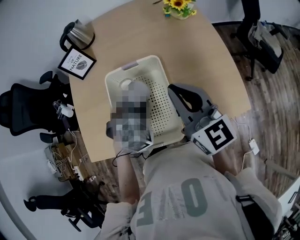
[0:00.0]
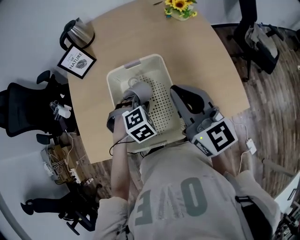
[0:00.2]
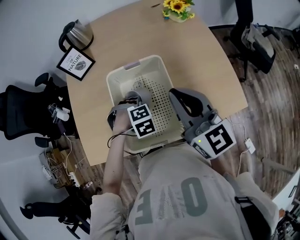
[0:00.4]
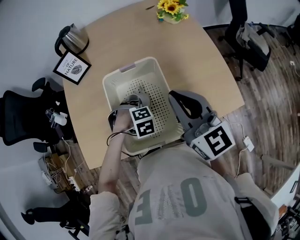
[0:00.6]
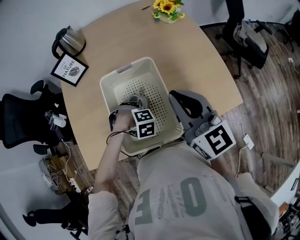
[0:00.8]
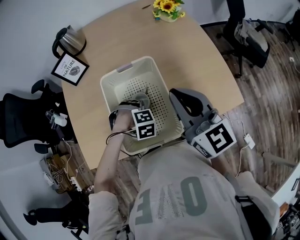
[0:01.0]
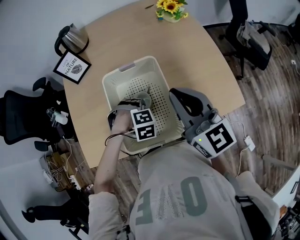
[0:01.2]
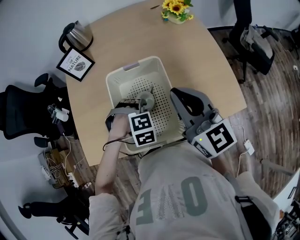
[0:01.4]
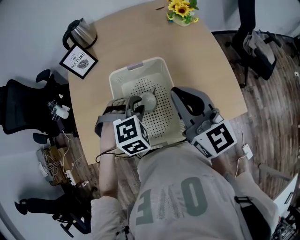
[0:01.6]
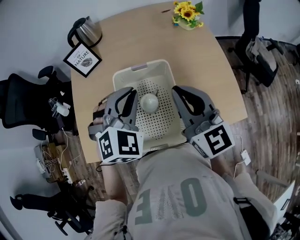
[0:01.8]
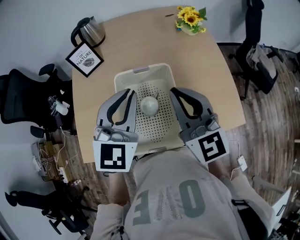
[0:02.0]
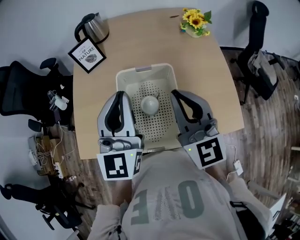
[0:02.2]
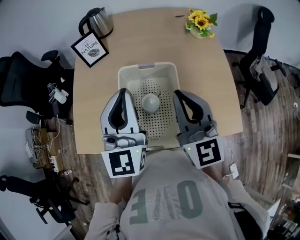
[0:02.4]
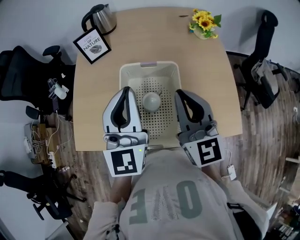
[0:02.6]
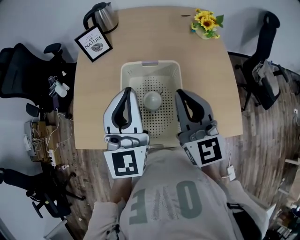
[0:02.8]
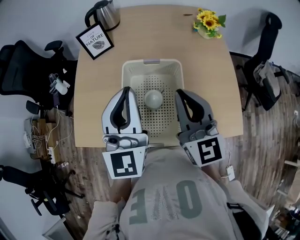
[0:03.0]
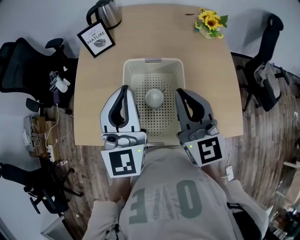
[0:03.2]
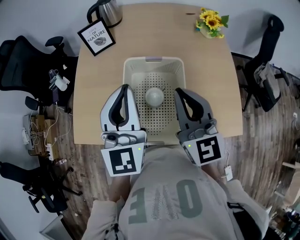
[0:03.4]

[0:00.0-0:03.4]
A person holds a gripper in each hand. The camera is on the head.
0:00.0 to 0:01.6: The left gripper travels downward and back again, some 15 cm each way.
0:01.6 to 0:03.4: The left gripper heads upward and to the left, covering roughly 20 cm, tips its fingers upward by approximately 60 degrees, and closes its fingers.

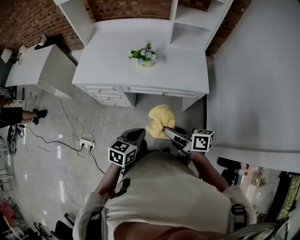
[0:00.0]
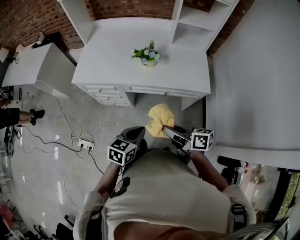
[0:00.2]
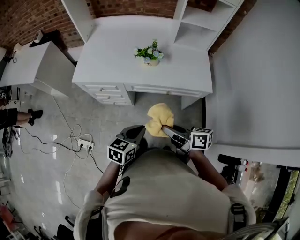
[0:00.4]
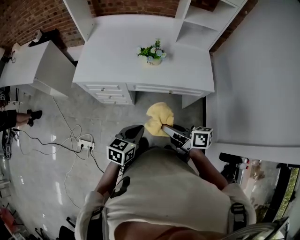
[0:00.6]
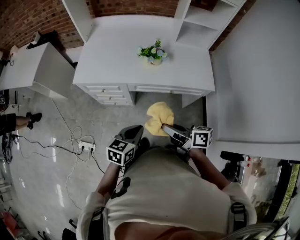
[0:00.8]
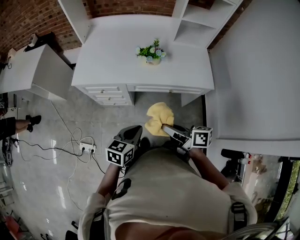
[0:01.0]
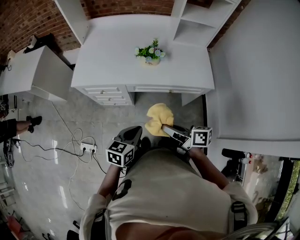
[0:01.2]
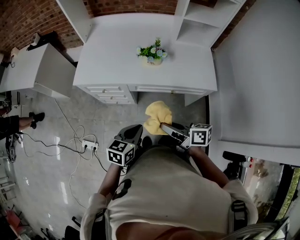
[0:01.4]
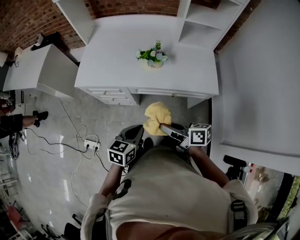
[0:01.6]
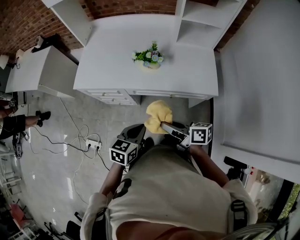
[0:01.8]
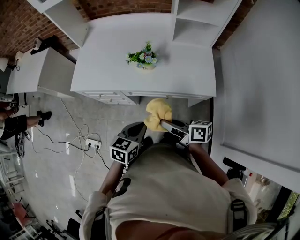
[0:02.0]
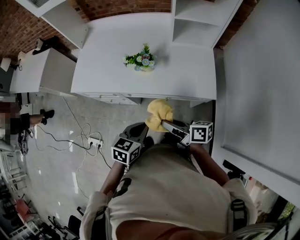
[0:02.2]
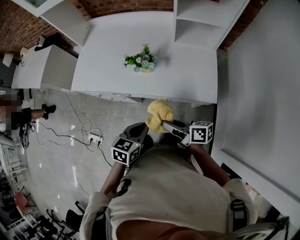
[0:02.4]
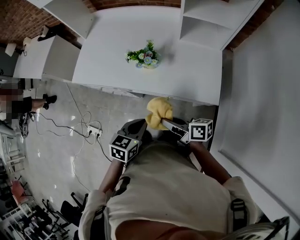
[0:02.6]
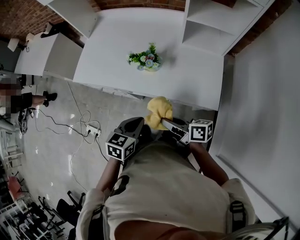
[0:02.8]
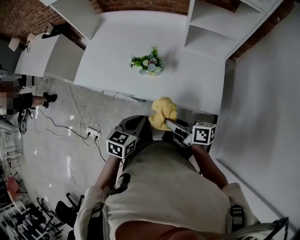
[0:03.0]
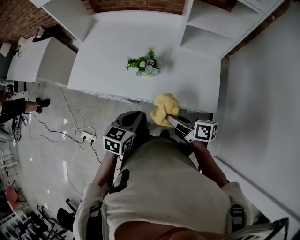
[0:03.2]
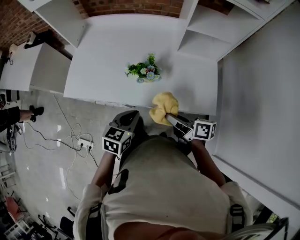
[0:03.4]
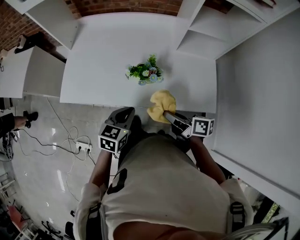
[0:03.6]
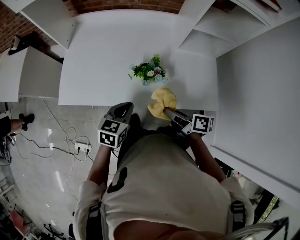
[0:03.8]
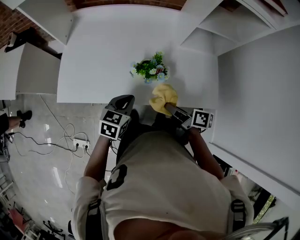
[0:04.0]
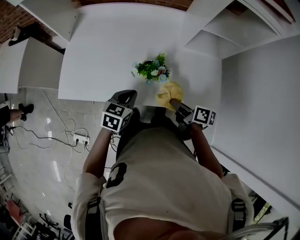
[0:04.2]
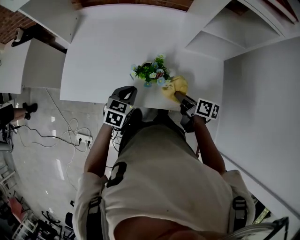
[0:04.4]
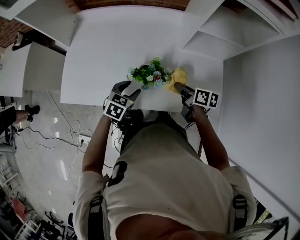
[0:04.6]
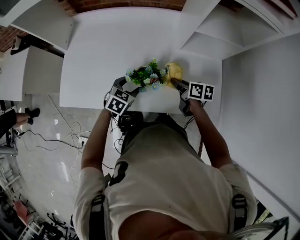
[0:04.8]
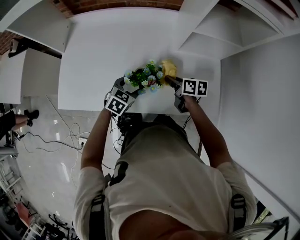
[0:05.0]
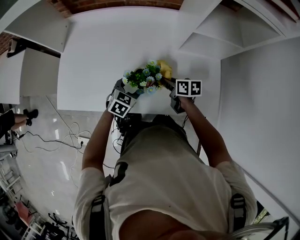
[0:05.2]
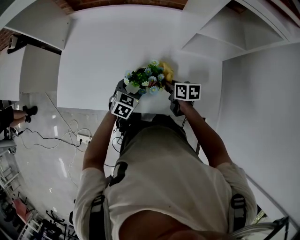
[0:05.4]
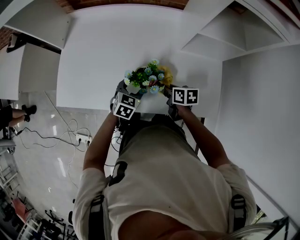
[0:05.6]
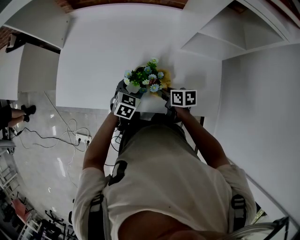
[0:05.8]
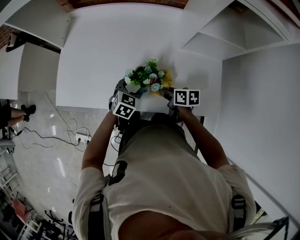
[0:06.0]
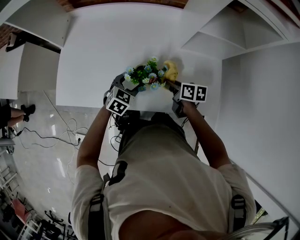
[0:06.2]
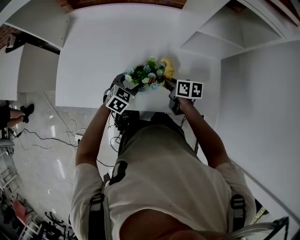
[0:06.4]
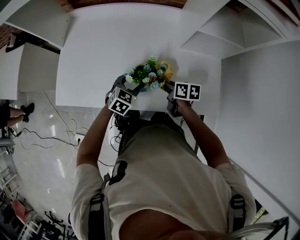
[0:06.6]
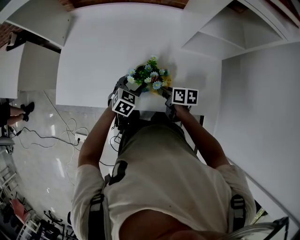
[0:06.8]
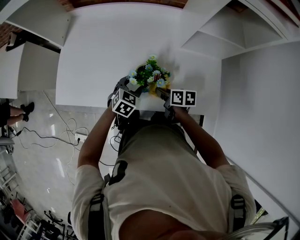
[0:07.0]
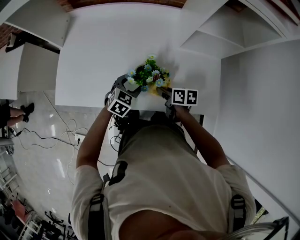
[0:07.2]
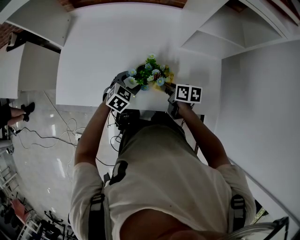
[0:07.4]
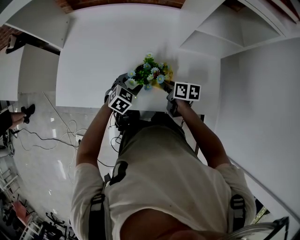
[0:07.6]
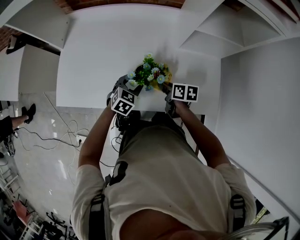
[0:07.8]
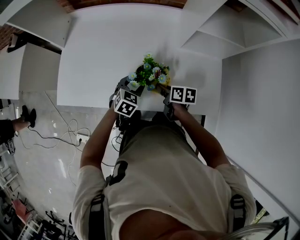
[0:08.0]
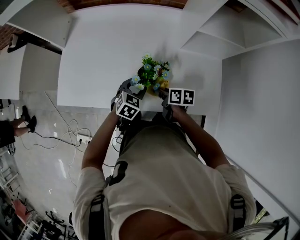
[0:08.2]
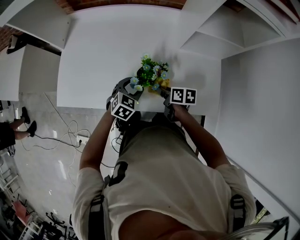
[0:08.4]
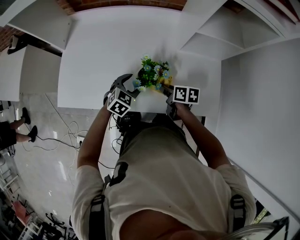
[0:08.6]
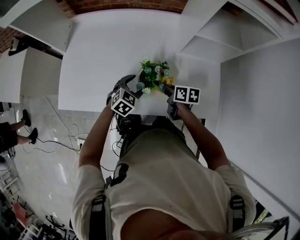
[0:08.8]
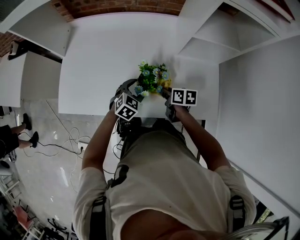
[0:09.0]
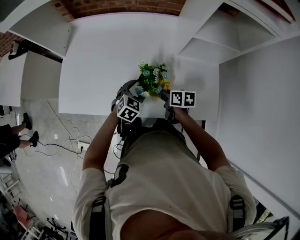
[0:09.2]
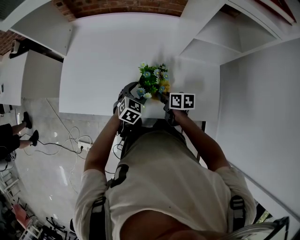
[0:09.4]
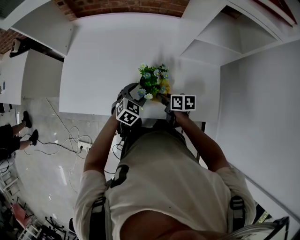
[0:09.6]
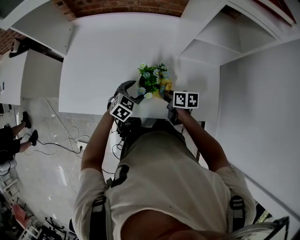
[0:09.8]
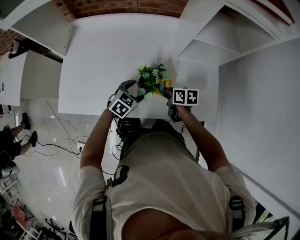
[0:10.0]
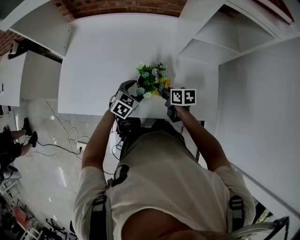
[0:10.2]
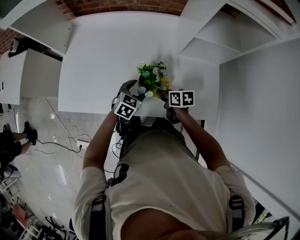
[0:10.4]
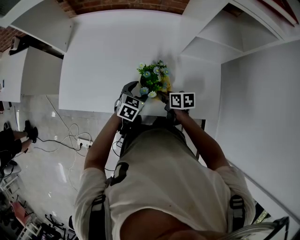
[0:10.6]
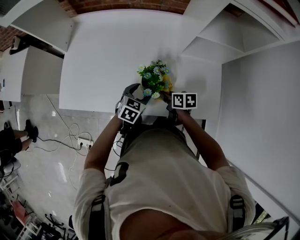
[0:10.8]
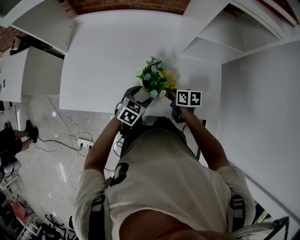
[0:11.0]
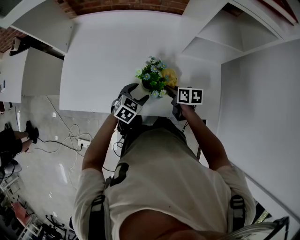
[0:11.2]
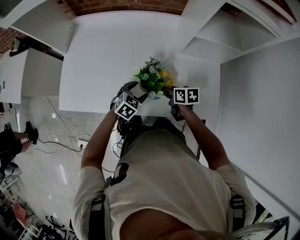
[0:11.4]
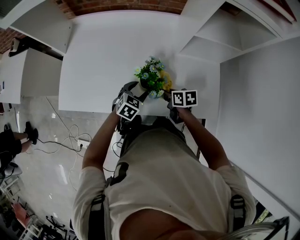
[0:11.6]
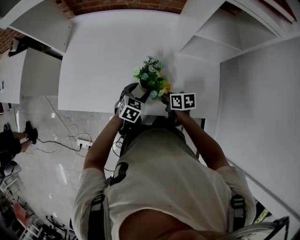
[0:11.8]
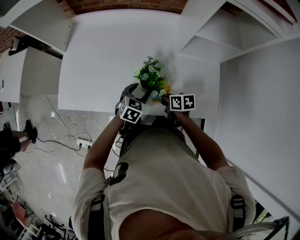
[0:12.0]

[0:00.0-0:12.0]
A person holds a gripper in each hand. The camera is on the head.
0:00.0 to 0:01.6: The grippers both shift to the left and forward by roughly 10 cm.
0:01.6 to 0:03.0: The two grippers go about 15 cm to the right and forward.
0:03.0 to 0:04.4: The right gripper shifts some 20 cm forward and downward, and turns by about 30 degrees. Meanwhile the left gripper shifts about 20 cm forward.
0:04.4 to 0:06.0: The right gripper heads downward, covering roughly 5 cm; the left gripper shifts approximately 10 cm downward and forward, and opens its fingers.
0:06.0 to 0:07.6: The right gripper moves forward and backward over some 5 cm, changing direction 2 times.
0:07.6 to 0:12.0: The grippers stay close to where they were, moving slightly.

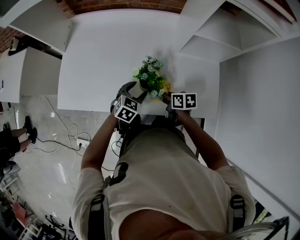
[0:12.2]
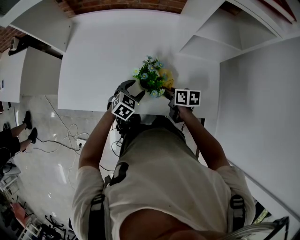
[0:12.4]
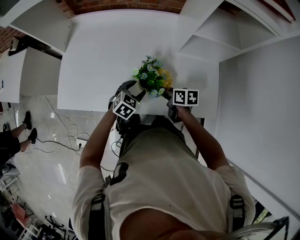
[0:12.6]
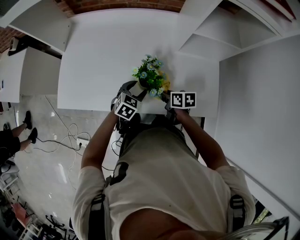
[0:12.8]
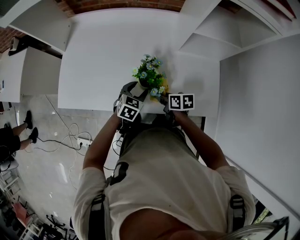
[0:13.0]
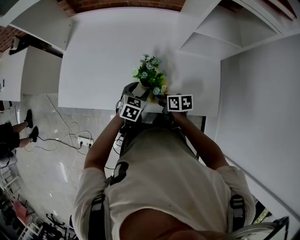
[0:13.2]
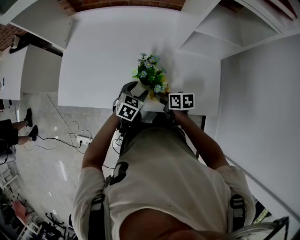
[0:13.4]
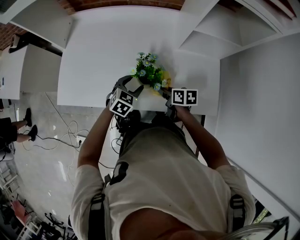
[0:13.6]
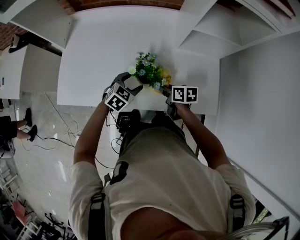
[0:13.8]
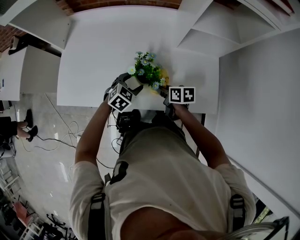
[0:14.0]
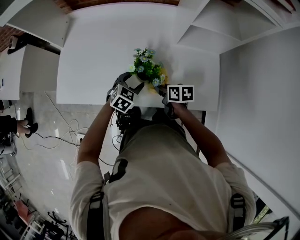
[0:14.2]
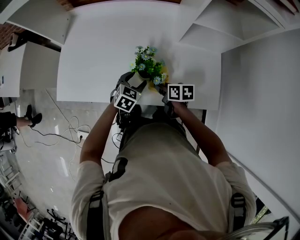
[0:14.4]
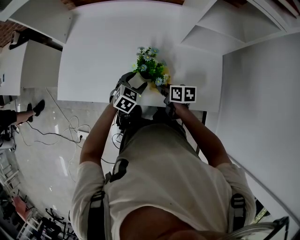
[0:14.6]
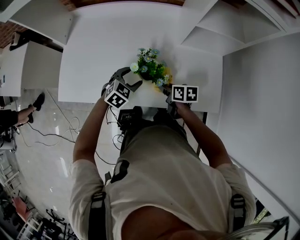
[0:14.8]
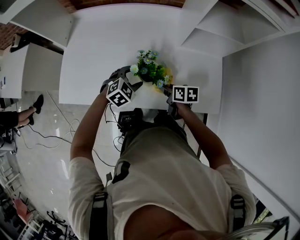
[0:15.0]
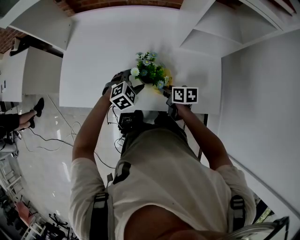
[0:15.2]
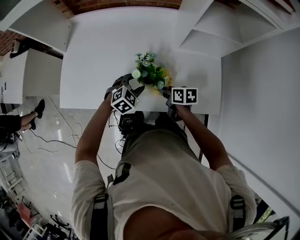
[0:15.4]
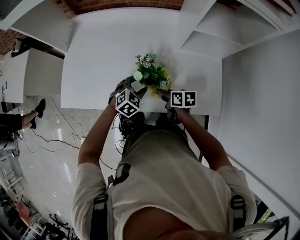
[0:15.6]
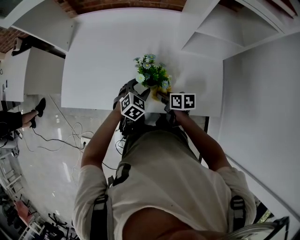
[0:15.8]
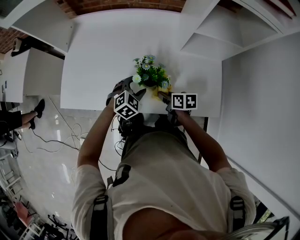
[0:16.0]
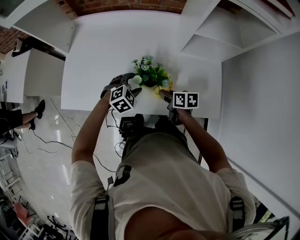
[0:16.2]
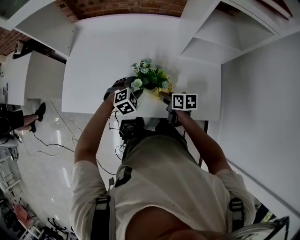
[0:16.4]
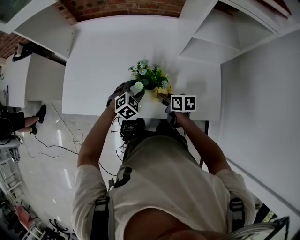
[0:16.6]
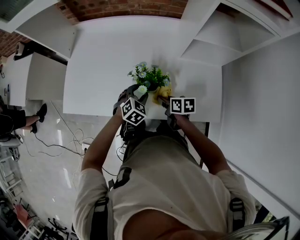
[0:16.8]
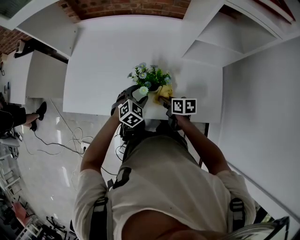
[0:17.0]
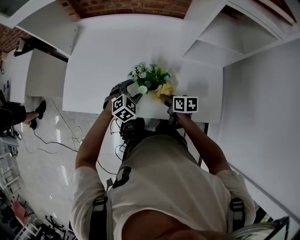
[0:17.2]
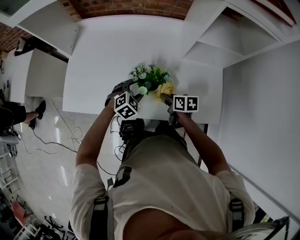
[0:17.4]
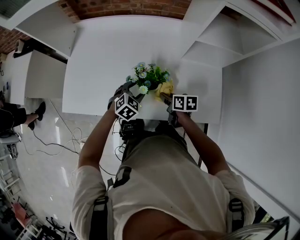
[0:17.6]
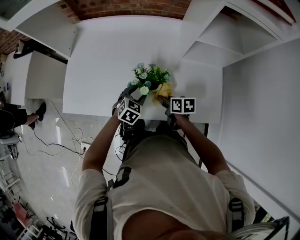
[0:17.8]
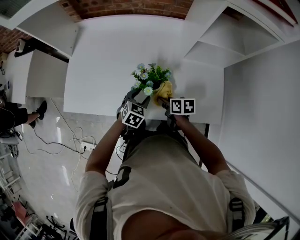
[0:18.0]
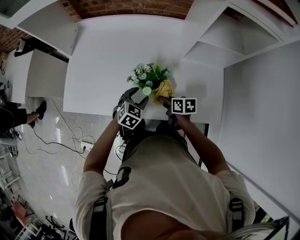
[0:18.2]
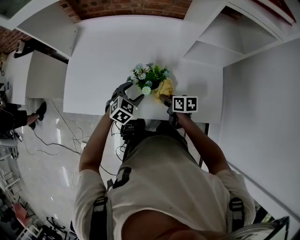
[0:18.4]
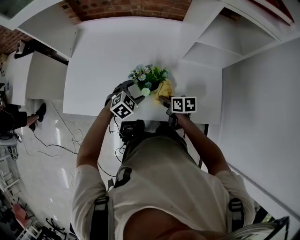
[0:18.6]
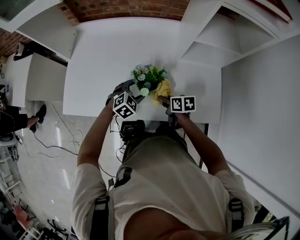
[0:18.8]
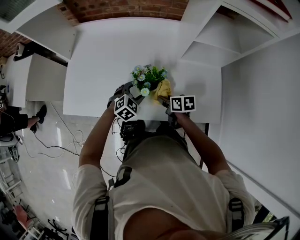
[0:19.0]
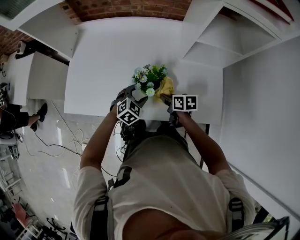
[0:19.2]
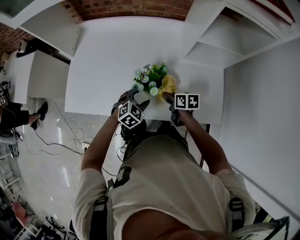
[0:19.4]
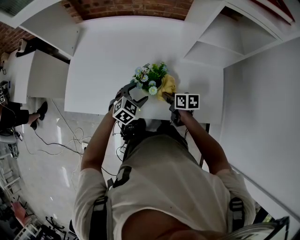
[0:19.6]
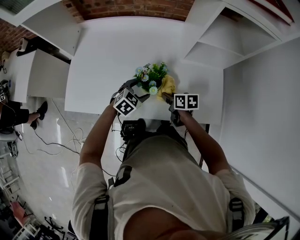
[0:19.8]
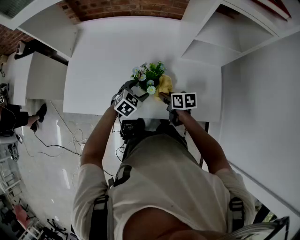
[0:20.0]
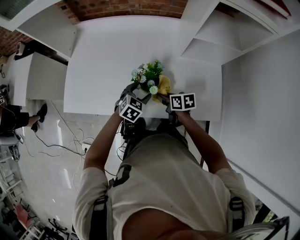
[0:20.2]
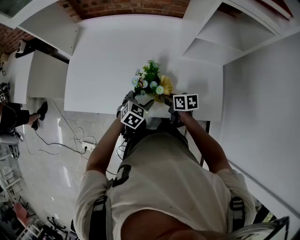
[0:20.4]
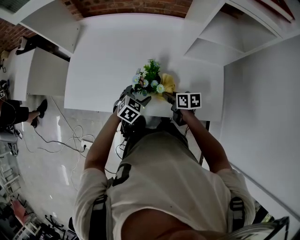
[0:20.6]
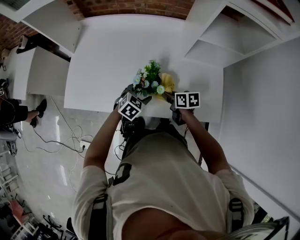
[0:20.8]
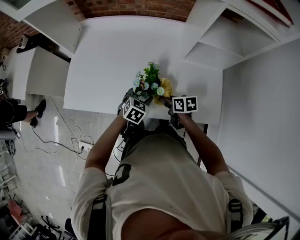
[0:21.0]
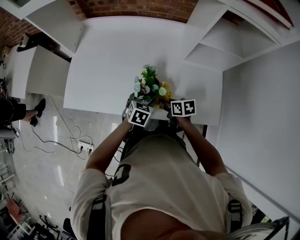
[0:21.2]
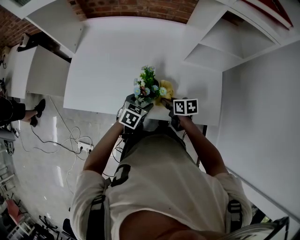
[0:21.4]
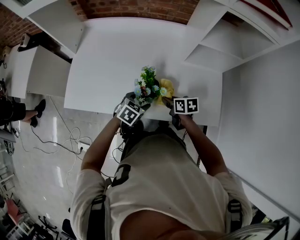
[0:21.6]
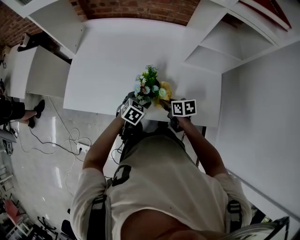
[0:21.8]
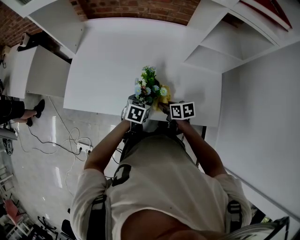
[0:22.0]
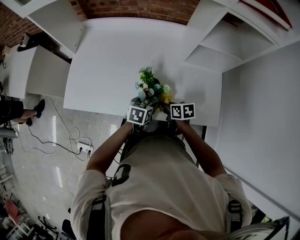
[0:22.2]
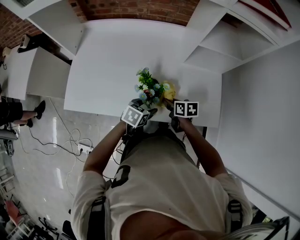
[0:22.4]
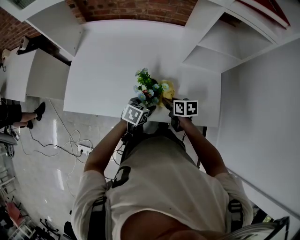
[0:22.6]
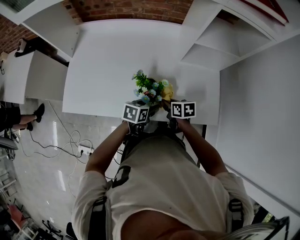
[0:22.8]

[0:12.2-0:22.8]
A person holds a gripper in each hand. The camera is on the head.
0:12.2 to 0:13.8: The grippers stay close to where they were, moving slightly.
0:15.2 to 0:16.8: The grippers make only small movements.
0:16.8 to 0:18.2: The grippers make only small movements.
0:19.8 to 0:21.2: The left gripper turns by approximately 30 degrees.
0:21.2 to 0:22.8: The left gripper changes its angle by approximately 30 degrees.
